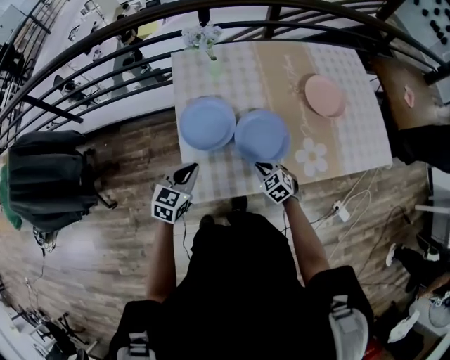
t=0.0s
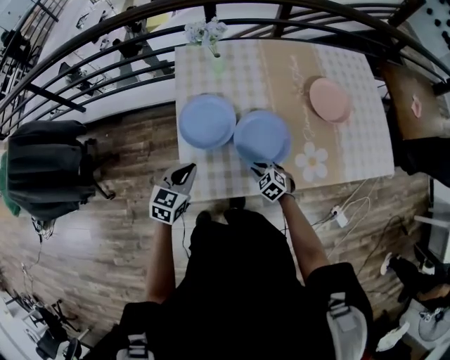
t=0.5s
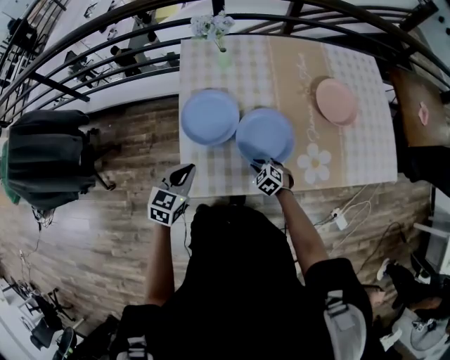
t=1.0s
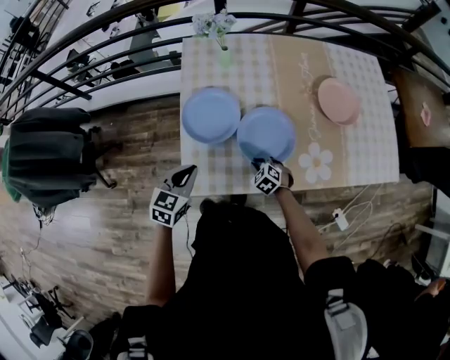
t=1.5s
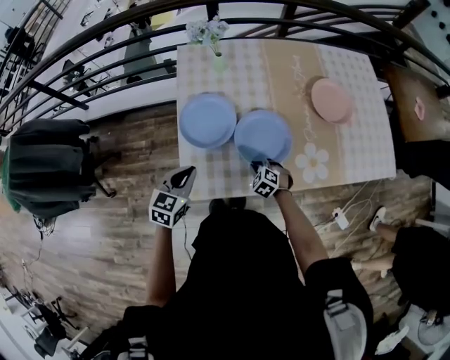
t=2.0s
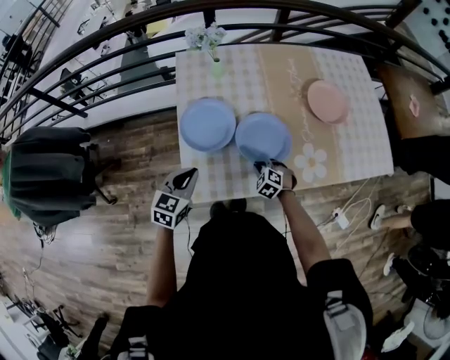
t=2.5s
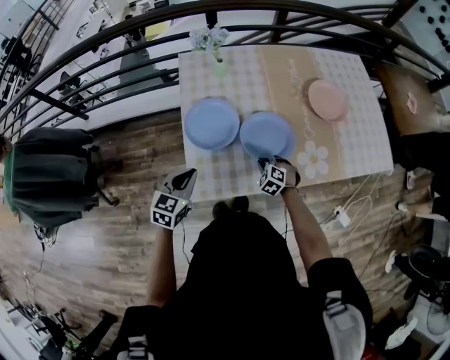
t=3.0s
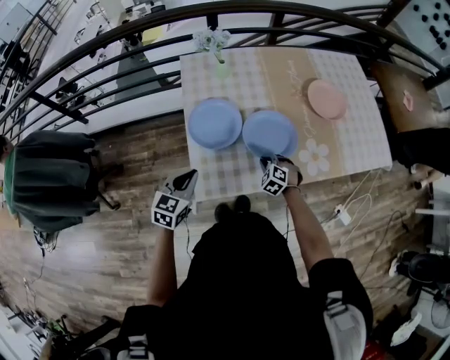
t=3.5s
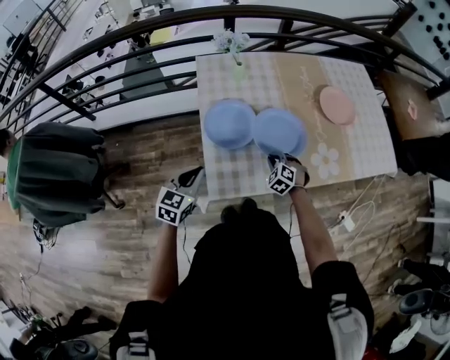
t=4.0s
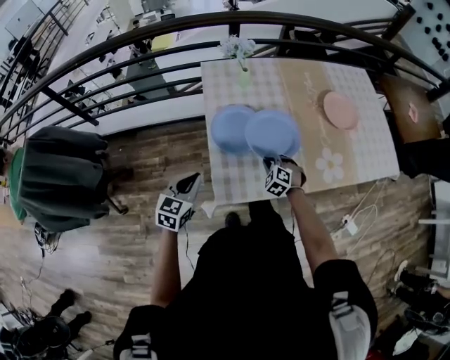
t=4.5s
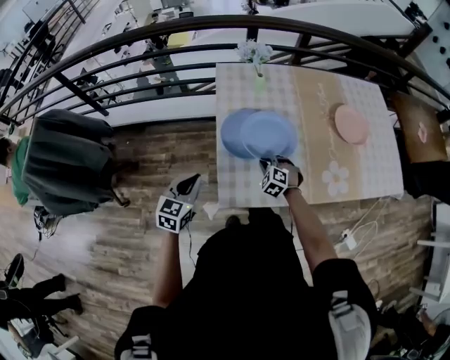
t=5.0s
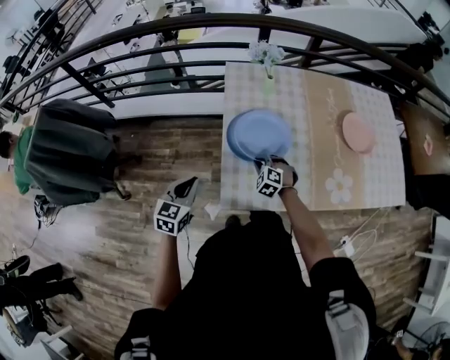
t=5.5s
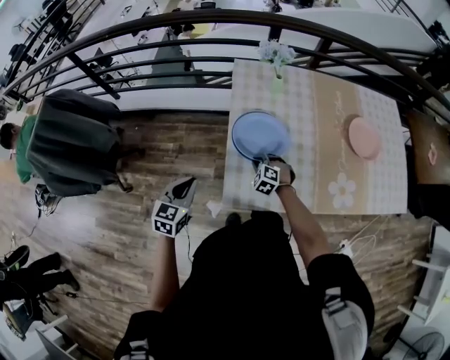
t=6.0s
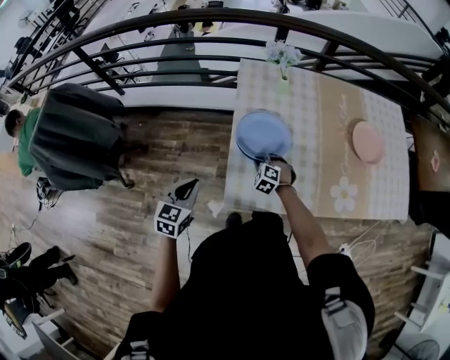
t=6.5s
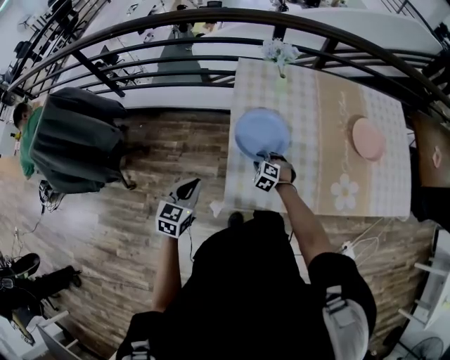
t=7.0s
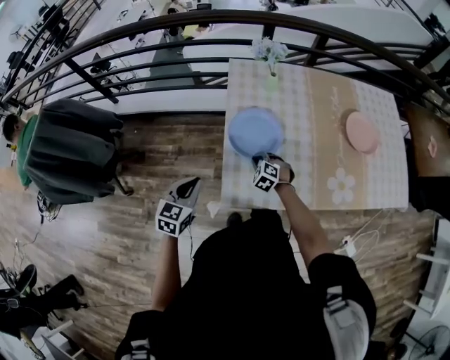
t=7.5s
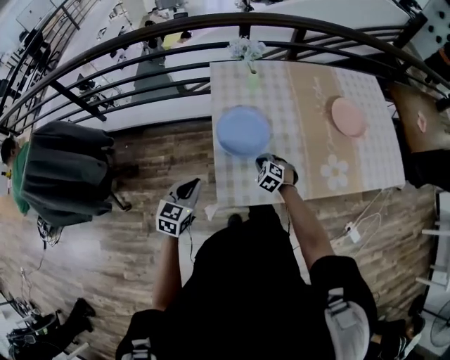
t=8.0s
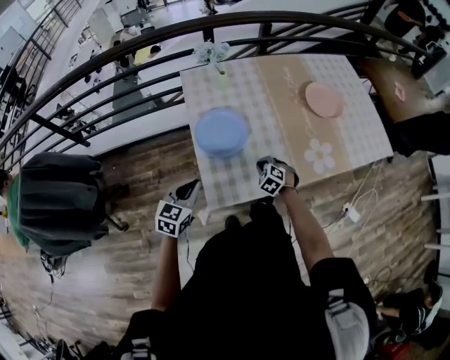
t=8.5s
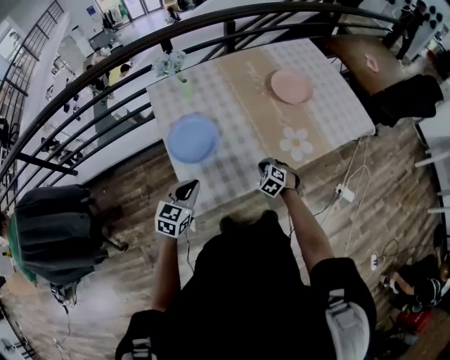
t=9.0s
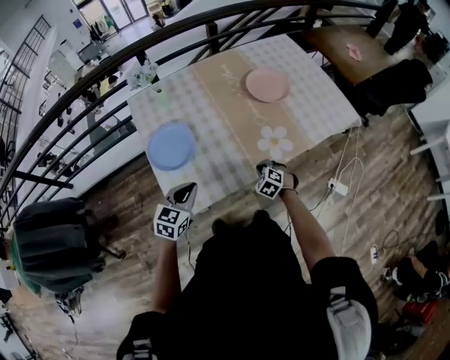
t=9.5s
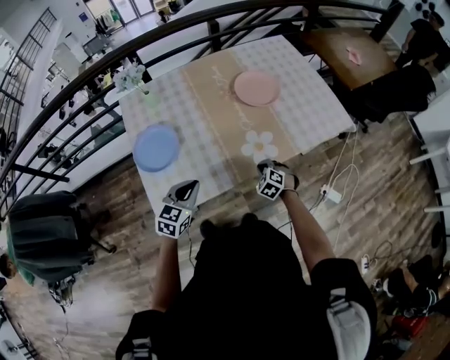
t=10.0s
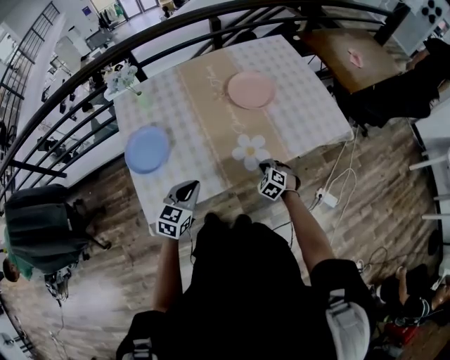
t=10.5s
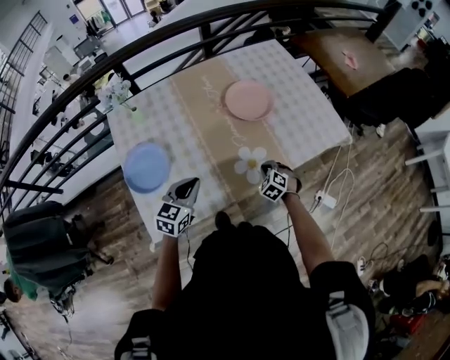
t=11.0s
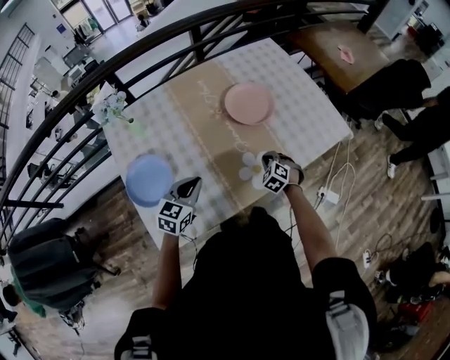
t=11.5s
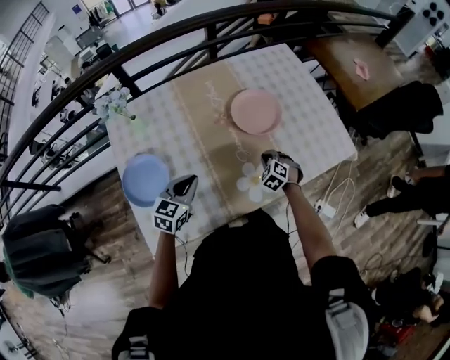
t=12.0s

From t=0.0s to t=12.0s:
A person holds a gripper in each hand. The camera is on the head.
From t=0.0s to t=2.0s: The right gripper shifts about 5 cm downward.
From t=2.0s to t=4.0s: The right gripper heads upward, covering about 5 cm. The left gripper goes about 10 cm to the left.
From t=4.0s to t=6.0s: The left gripper goes roughly 10 cm to the left; the right gripper is displaced to the left by approximately 15 cm.
From t=6.0s to t=8.0s: The right gripper travels to the right by approximately 5 cm, and opens, then closes again.
From t=8.0s to t=10.0s: Both grippers move to the right, about 35 cm. The left gripper rotates approximately 20 degrees.
From t=10.0s to t=12.0s: The two grippers go about 20 cm forward.

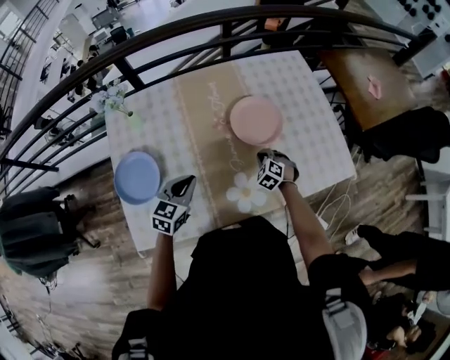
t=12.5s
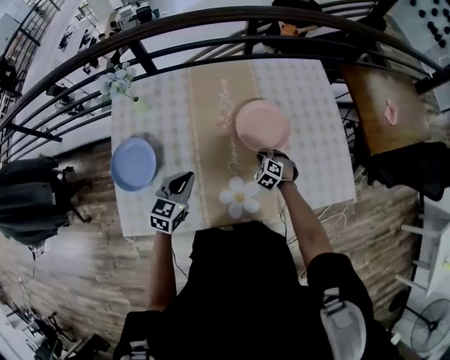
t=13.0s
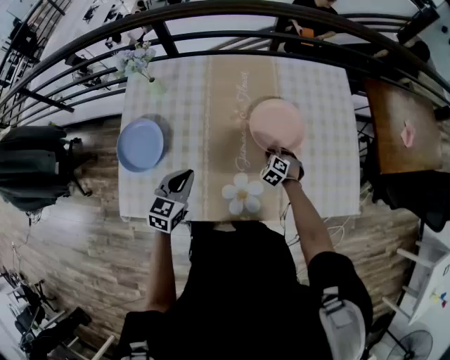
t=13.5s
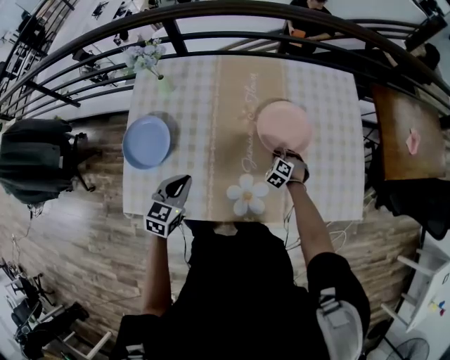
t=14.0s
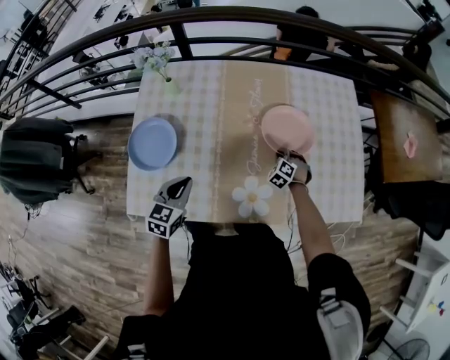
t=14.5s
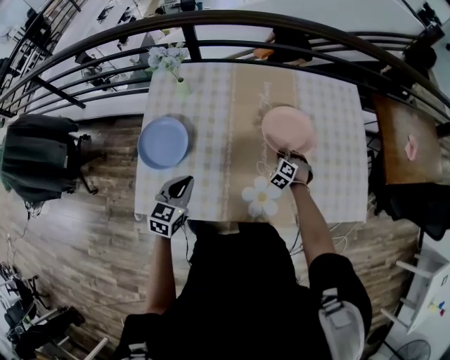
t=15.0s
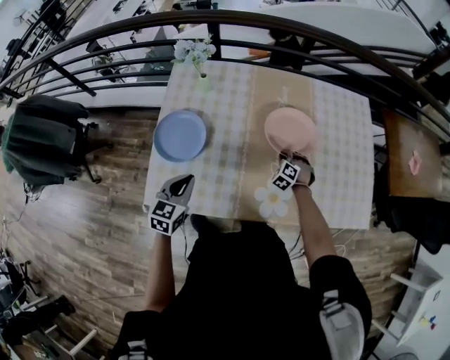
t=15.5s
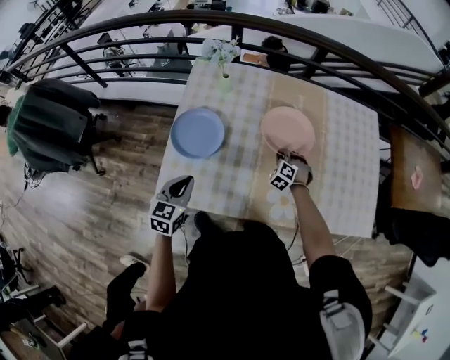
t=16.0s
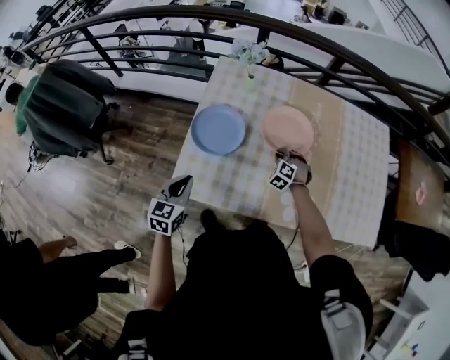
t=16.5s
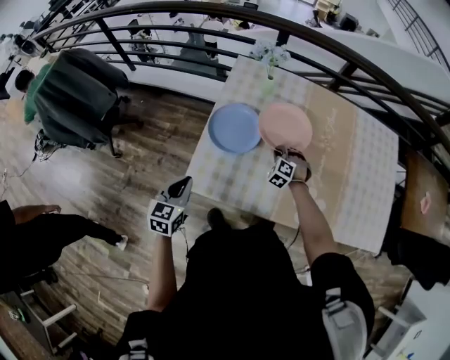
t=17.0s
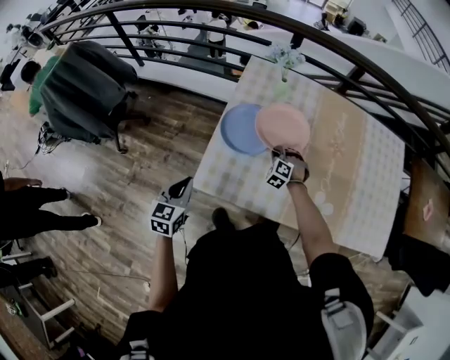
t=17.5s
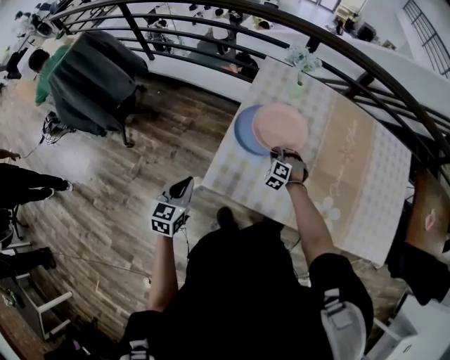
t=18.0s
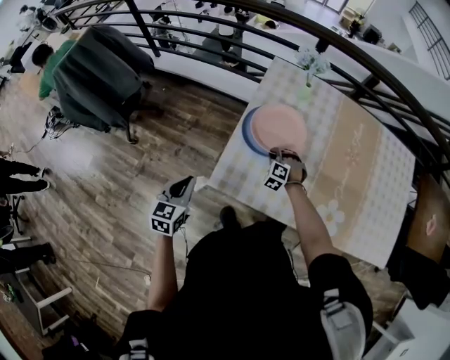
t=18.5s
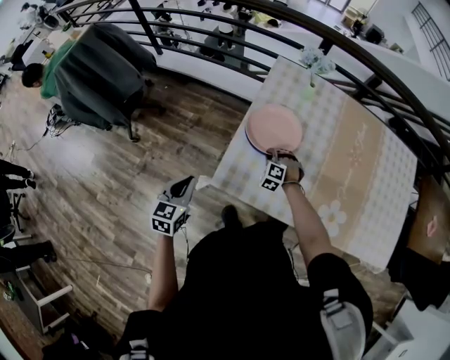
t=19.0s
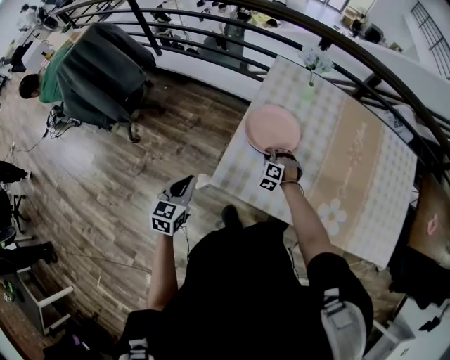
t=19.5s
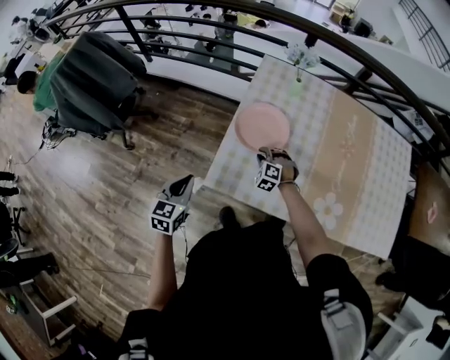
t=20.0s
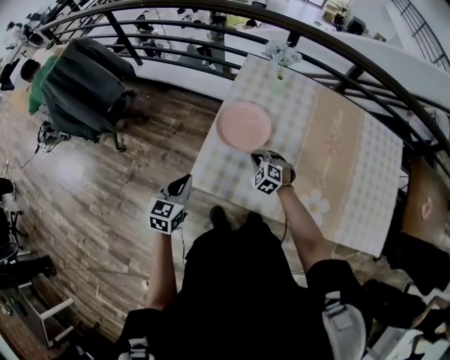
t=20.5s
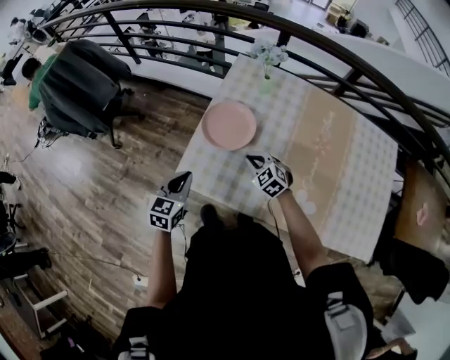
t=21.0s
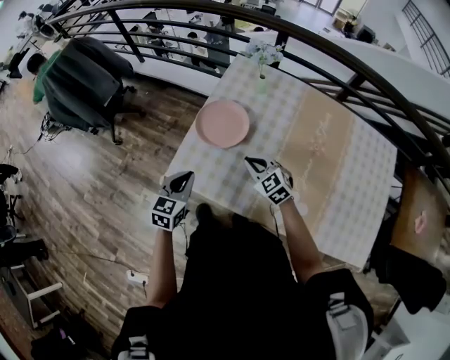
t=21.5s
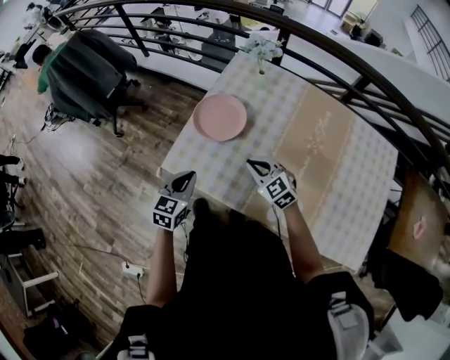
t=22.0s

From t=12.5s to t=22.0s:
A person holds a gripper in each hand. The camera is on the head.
From t=12.5s to t=14.5s: The left gripper travels backward by roughly 5 cm, and rotates approximately 20 degrees. The right gripper is displaced forward by roughly 5 cm.
From t=14.5s to t=16.5s: The left gripper heads to the left and backward, covering about 30 cm. The right gripper moves to the left, about 30 cm.
From t=16.5s to t=18.0s: Both grippers travel together to the left, approximately 20 cm.
From t=18.0s to t=20.0s: The right gripper moves to the left, roughly 5 cm.
From t=20.0s to t=22.0s: The left gripper shifts roughly 25 cm to the right, while the right gripper goes roughly 25 cm upward, to the right and backward, and swivels about 40 degrees.

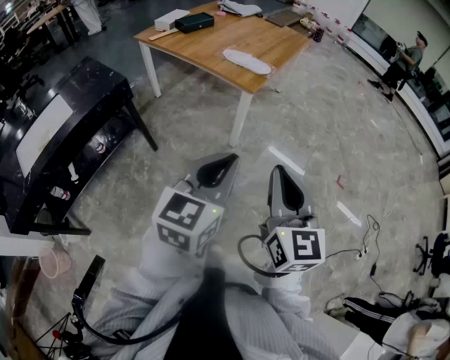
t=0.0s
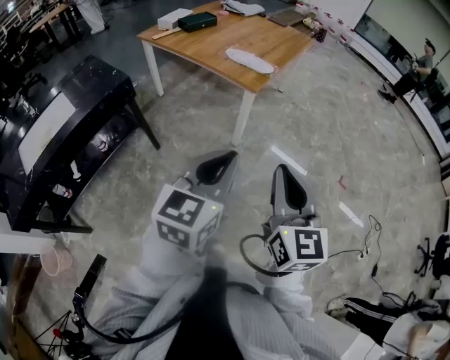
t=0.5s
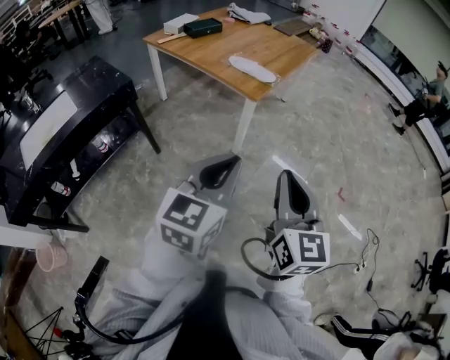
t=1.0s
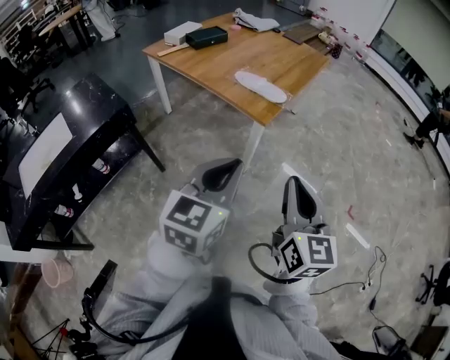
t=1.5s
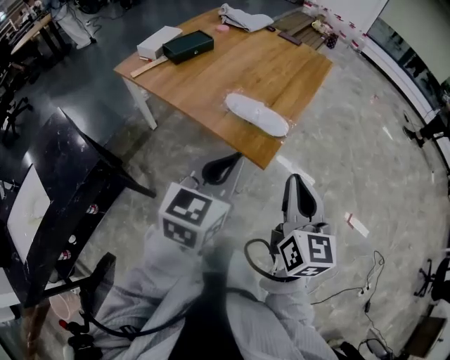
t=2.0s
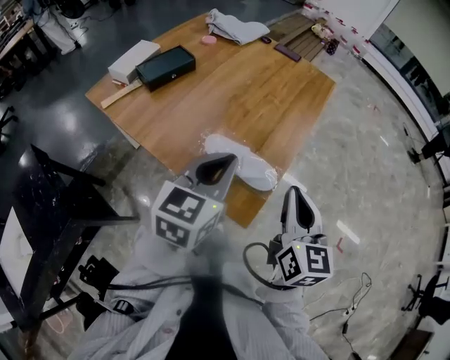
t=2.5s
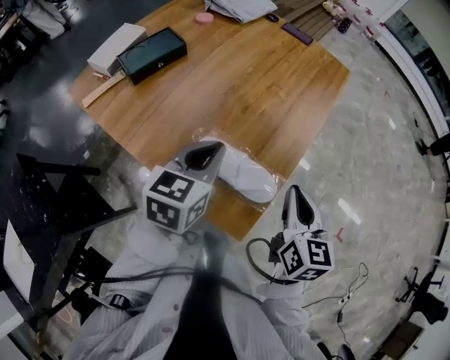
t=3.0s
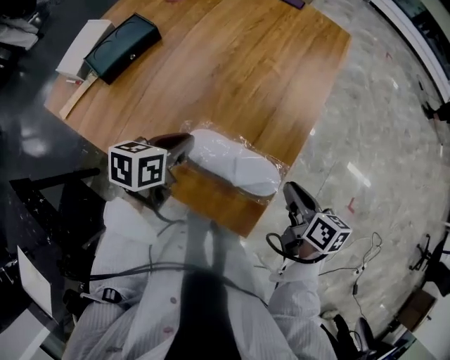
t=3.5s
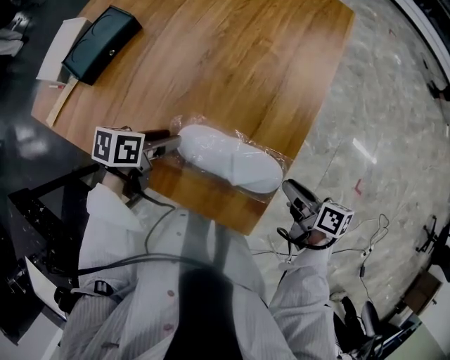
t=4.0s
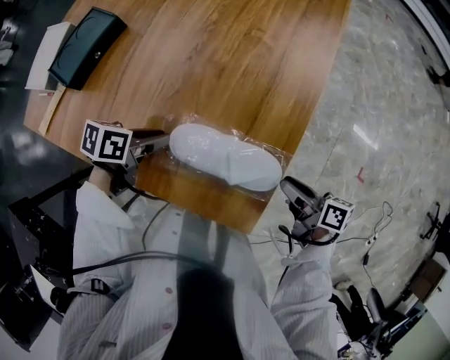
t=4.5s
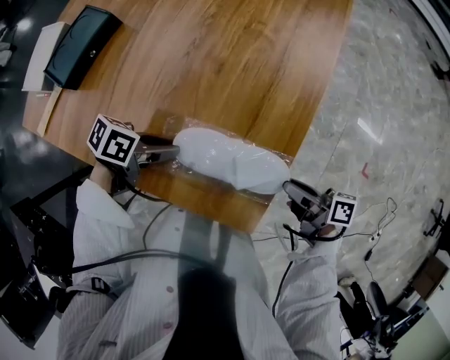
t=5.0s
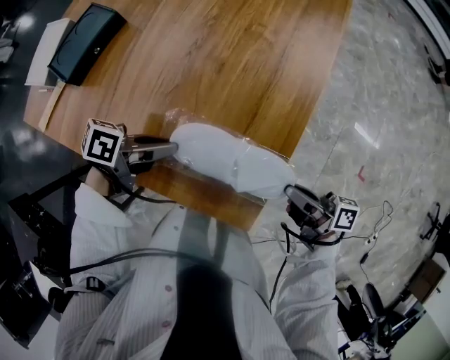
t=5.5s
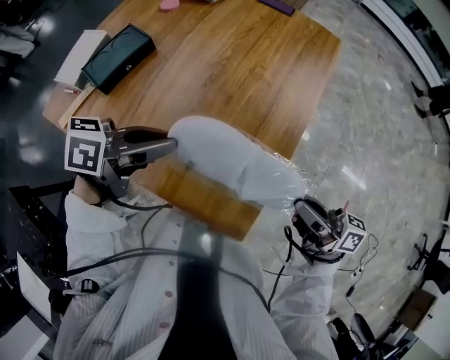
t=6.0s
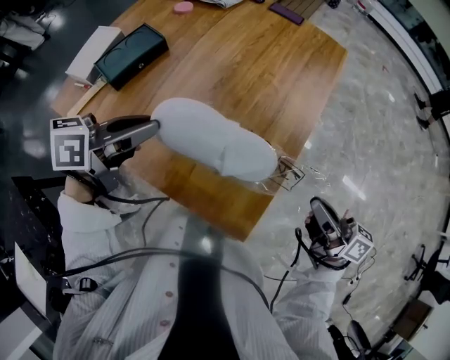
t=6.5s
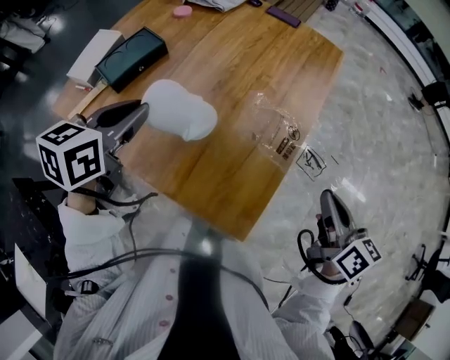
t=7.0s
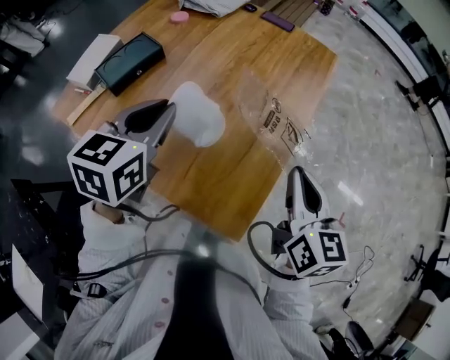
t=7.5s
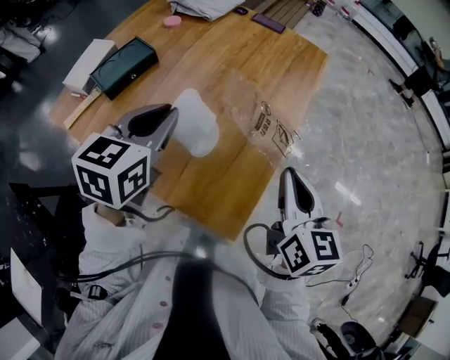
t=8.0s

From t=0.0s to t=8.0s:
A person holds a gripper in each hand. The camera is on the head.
From t=0.0s to t=2.0s: The pair of grippers is taken forward, some 40 cm.
From t=2.0s to t=4.0s: The left gripper moves forward and downward, approximately 50 cm, angles its fingers downward, by approximately 30 degrees, and opens its fingers; the right gripper heads downward and forward, covering roughly 40 cm, swivels roughly 60 degrees, and opens up.
From t=4.0s to t=6.0s: Both grippers move upward, some 20 cm. The left gripper rotates some 30 degrees, and closes up; the right gripper tips its fingers upward by about 30 degrees.
From t=6.0s to t=8.0s: Both grippers move upward, approximately 5 cm. The right gripper changes its angle by about 60 degrees; the left gripper turns by some 50 degrees.
